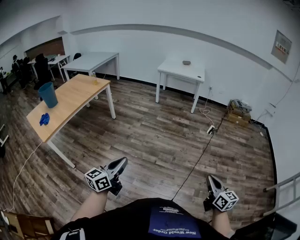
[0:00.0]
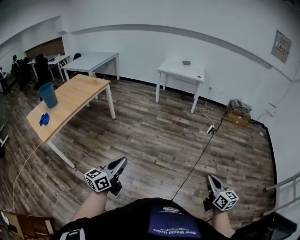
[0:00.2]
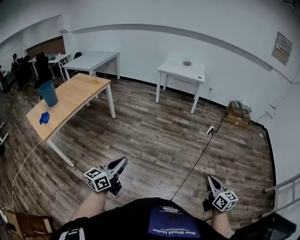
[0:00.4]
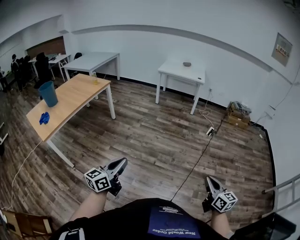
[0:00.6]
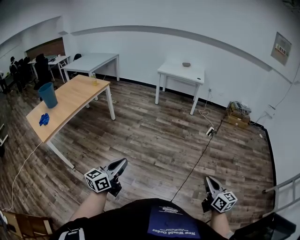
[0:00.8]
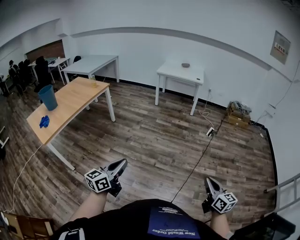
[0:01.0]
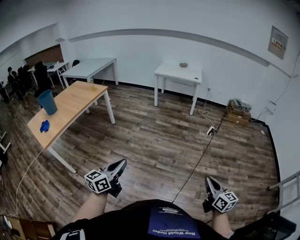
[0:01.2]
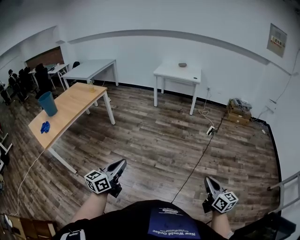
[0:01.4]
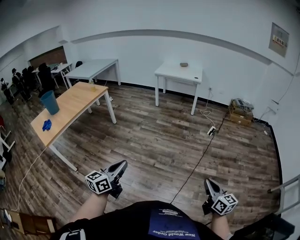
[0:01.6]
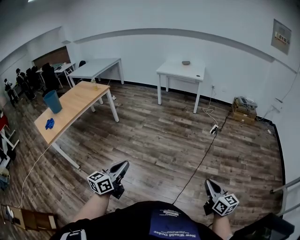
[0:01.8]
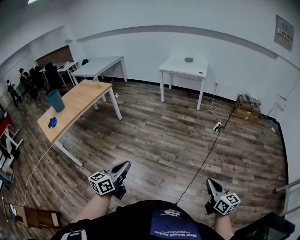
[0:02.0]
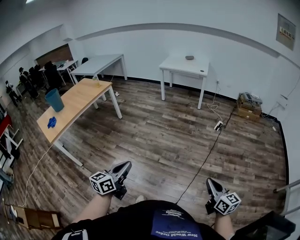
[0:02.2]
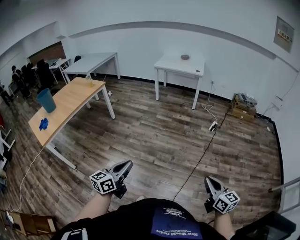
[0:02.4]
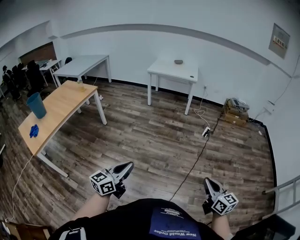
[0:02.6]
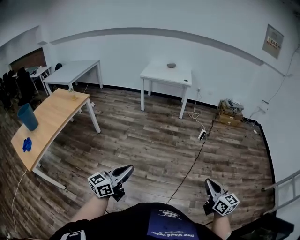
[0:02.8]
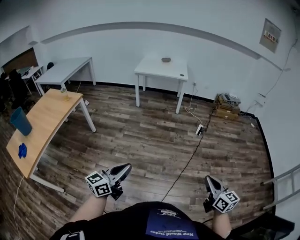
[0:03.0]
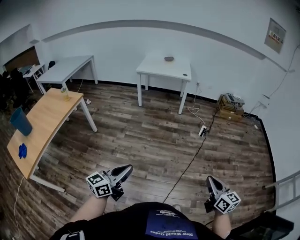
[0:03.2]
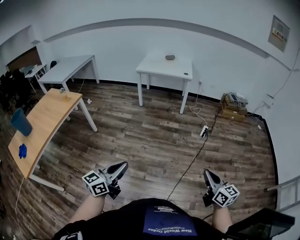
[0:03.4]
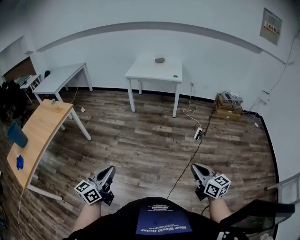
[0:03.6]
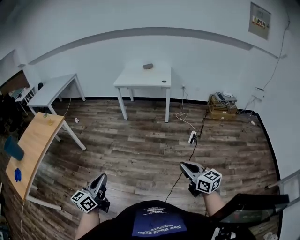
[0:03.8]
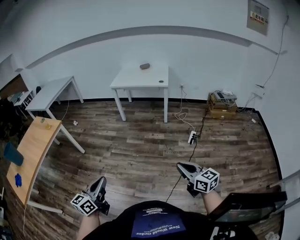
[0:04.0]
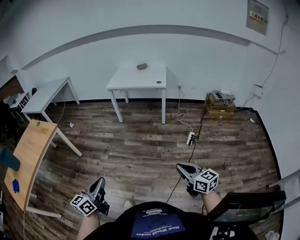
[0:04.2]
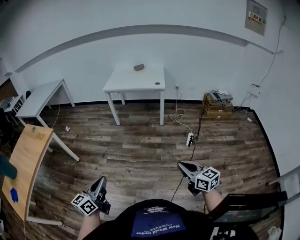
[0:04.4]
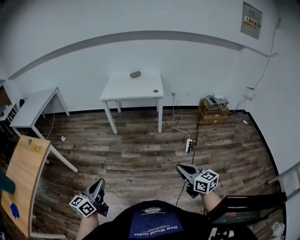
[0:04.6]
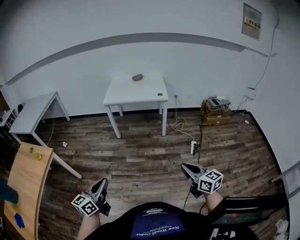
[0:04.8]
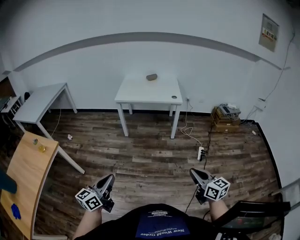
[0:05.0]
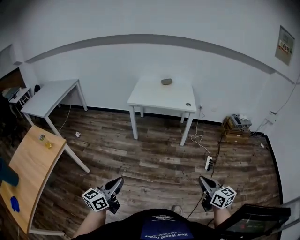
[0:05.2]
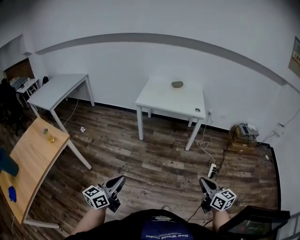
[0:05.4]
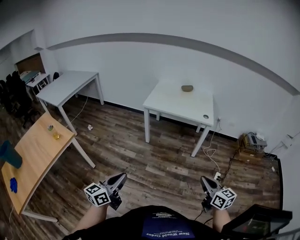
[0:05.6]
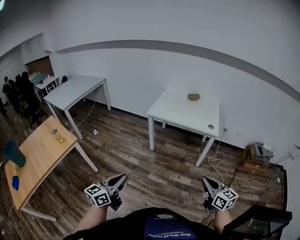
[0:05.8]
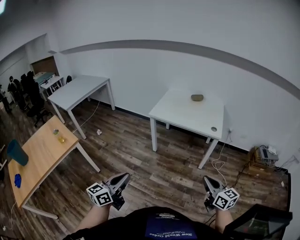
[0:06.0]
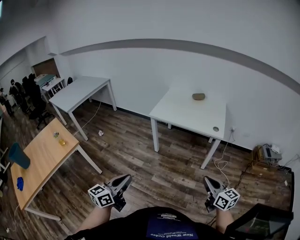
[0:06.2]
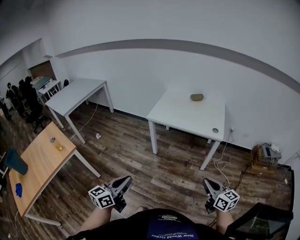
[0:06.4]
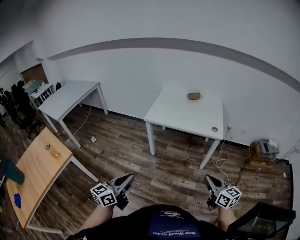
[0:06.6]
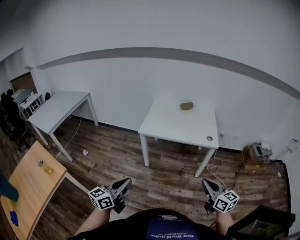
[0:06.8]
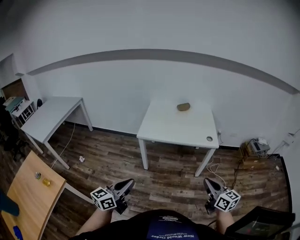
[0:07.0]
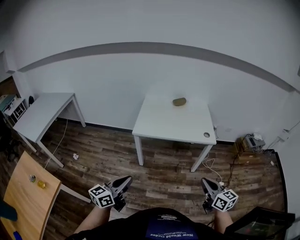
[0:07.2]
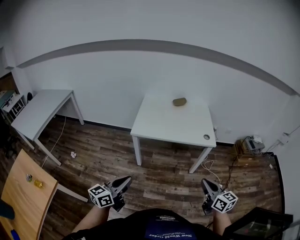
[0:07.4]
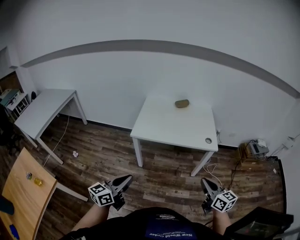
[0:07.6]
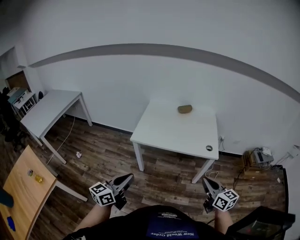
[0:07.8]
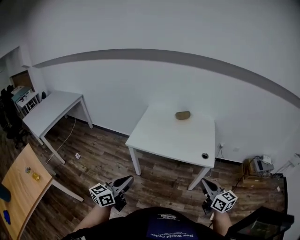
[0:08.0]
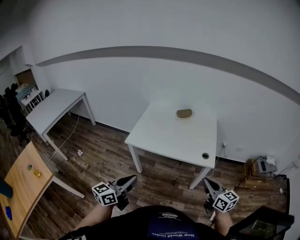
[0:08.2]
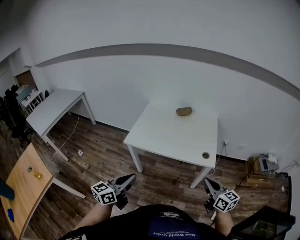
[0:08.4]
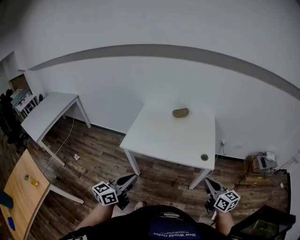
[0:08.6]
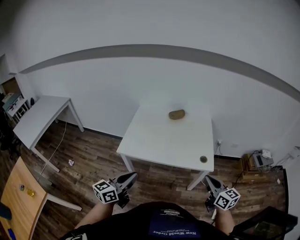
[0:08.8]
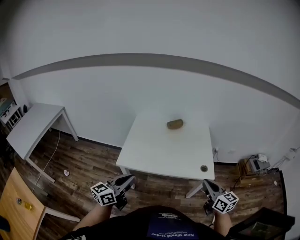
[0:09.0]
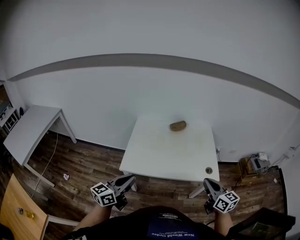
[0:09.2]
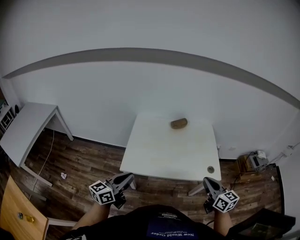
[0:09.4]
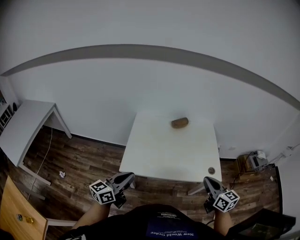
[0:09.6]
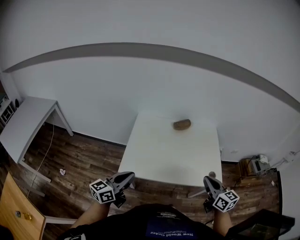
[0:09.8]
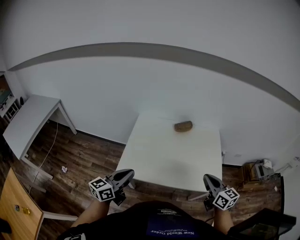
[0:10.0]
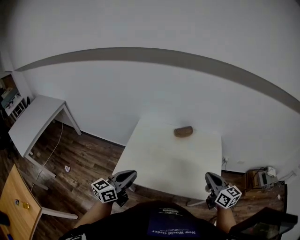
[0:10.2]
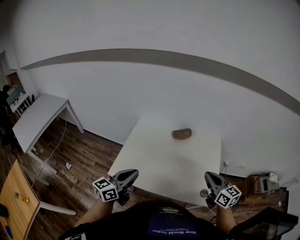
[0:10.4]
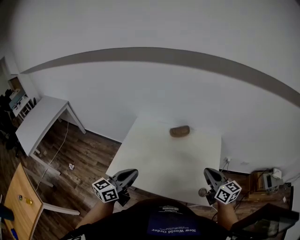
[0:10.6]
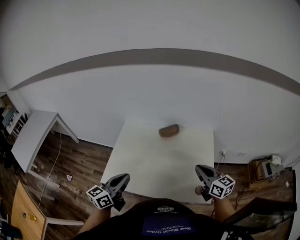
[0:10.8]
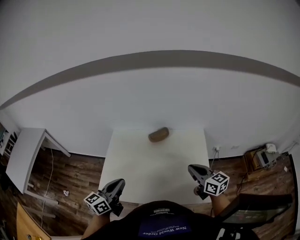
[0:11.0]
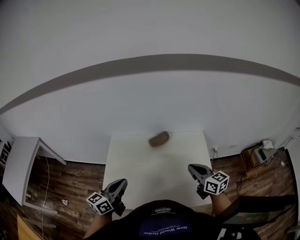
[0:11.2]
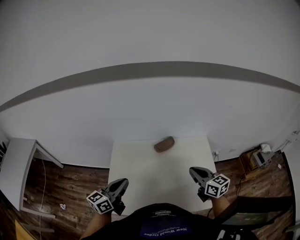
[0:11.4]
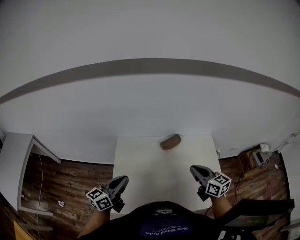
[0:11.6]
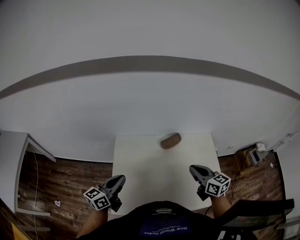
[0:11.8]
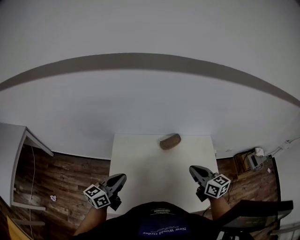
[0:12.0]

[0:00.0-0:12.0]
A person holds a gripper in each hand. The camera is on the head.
0:00.0 to 0:01.6: The grippers both shift to the right by approximately 10 cm.
0:01.6 to 0:03.0: The two grippers go about 25 cm forward.
0:03.0 to 0:04.4: The grippers both shift forward by some 40 cm.
0:04.4 to 0:06.0: Both grippers are carried forward, some 50 cm.
0:06.0 to 0:07.6: Both grippers move forward, approximately 30 cm.
0:07.6 to 0:09.0: Both grippers move forward, some 30 cm.
0:09.0 to 0:10.4: Both grippers travel together forward, about 25 cm.
0:10.4 to 0:12.0: Both grippers travel together forward and to the left, roughly 30 cm.

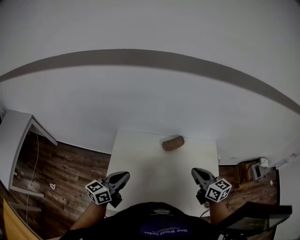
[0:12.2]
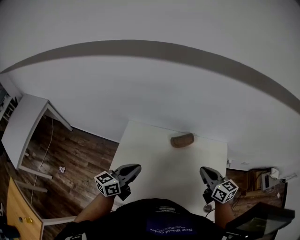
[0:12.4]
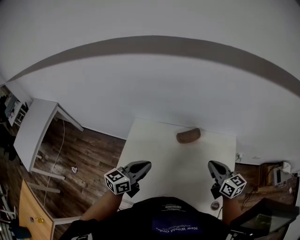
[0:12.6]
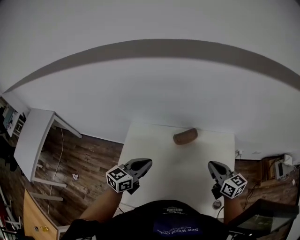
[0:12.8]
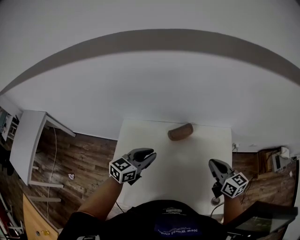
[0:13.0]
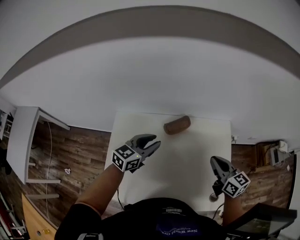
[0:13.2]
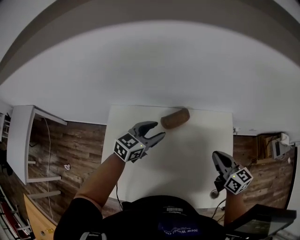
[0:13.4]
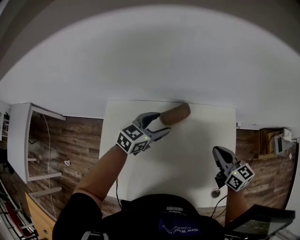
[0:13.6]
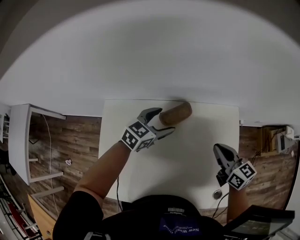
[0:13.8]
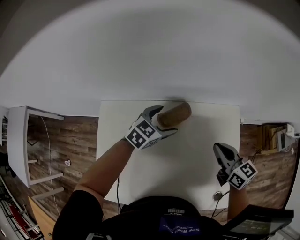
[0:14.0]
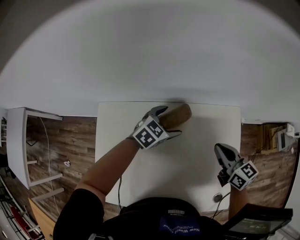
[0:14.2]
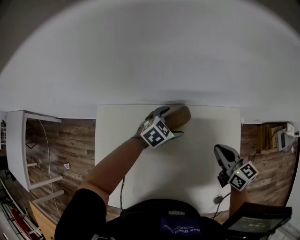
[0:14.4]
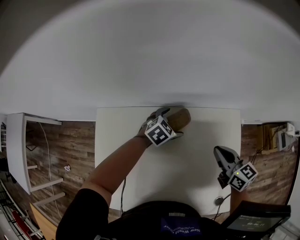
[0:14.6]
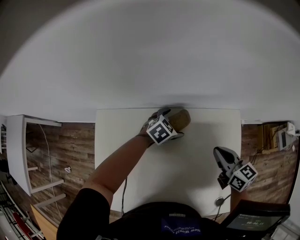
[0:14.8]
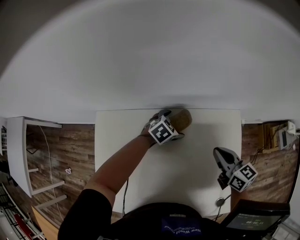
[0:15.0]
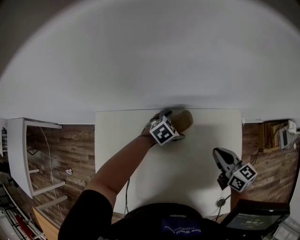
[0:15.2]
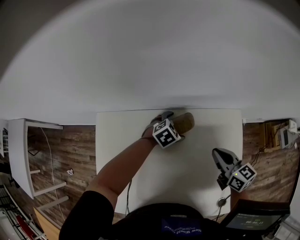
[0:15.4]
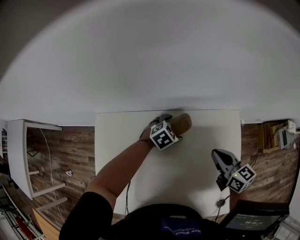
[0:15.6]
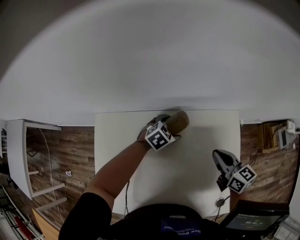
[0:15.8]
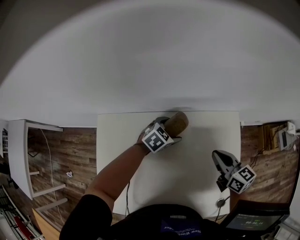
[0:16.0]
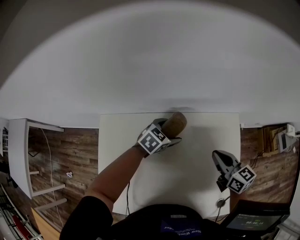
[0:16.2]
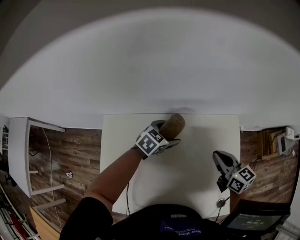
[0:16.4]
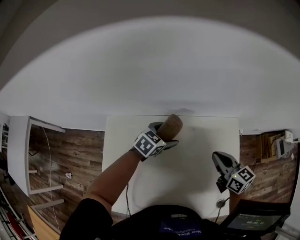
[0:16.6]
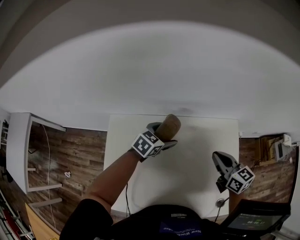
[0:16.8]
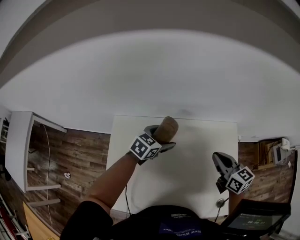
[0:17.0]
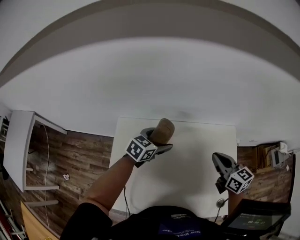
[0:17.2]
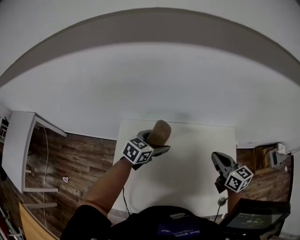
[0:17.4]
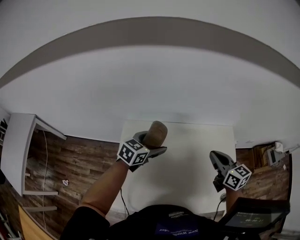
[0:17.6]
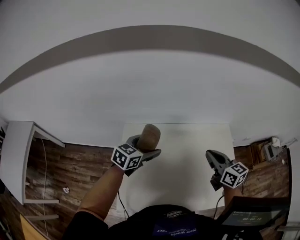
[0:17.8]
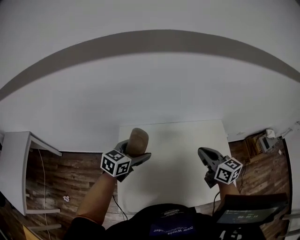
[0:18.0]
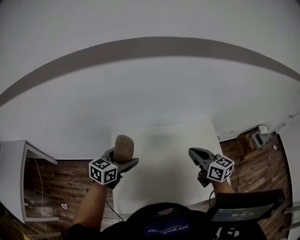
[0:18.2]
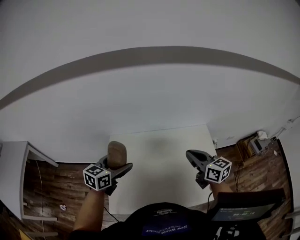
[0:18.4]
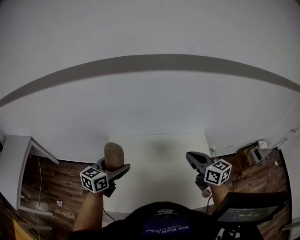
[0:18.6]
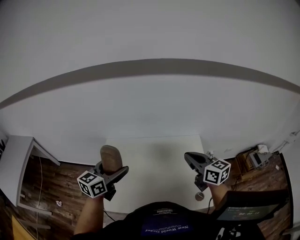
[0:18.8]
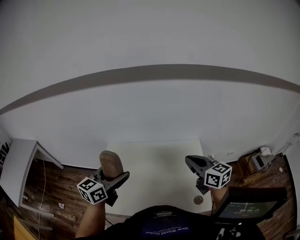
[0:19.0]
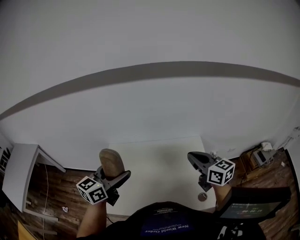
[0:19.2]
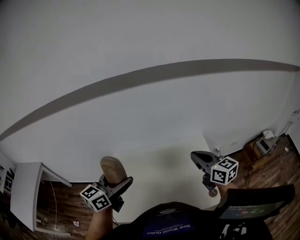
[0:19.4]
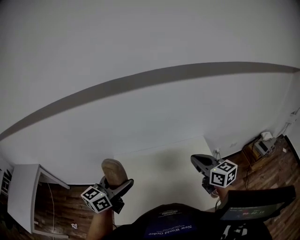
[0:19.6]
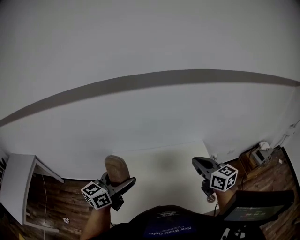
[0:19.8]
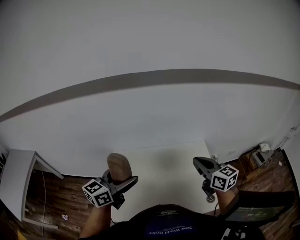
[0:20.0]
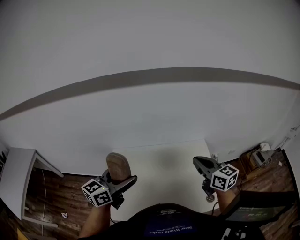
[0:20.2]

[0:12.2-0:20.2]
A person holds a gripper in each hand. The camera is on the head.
0:12.2 to 0:13.8: The right gripper heads forward, downward and to the right, covering roughly 25 cm, while the left gripper shifts about 40 cm forward, to the right and downward, changes its angle by roughly 40 degrees, and opens.
0:13.8 to 0:15.4: The right gripper heads downward, covering about 5 cm. Meanwhile the left gripper moves downward, roughly 15 cm, and rotates about 30 degrees.
0:15.4 to 0:17.0: The right gripper moves upward and backward, some 10 cm. The left gripper is displaced upward, to the left and backward by roughly 20 cm, and turns by approximately 30 degrees.
0:17.0 to 0:18.6: The grippers both shift backward and upward by about 30 cm. The left gripper swivels some 30 degrees.
0:18.6 to 0:20.2: The right gripper moves roughly 10 cm to the right and comes back; the left gripper heads upward, covering some 10 cm.

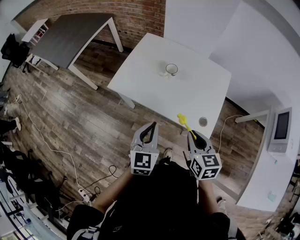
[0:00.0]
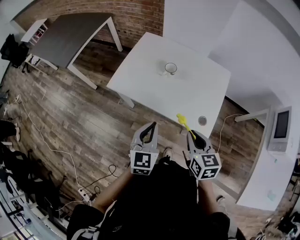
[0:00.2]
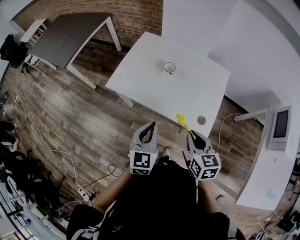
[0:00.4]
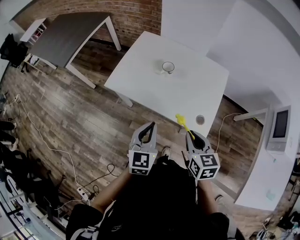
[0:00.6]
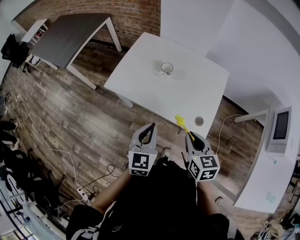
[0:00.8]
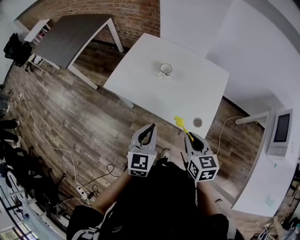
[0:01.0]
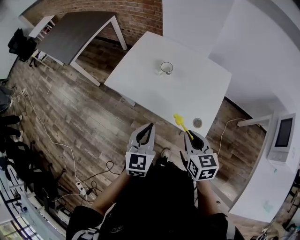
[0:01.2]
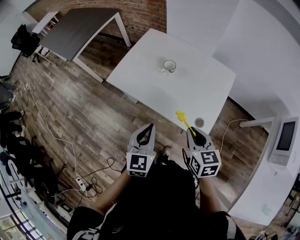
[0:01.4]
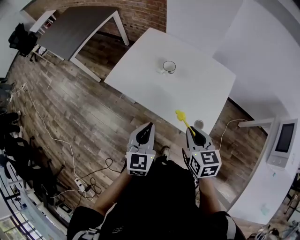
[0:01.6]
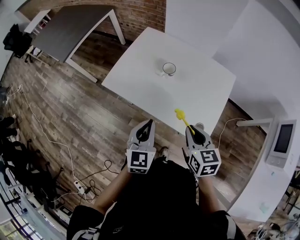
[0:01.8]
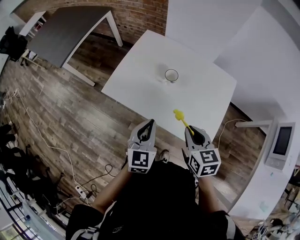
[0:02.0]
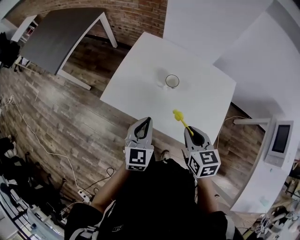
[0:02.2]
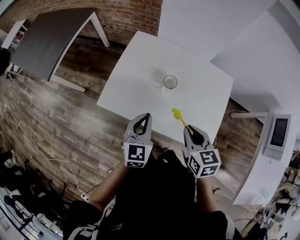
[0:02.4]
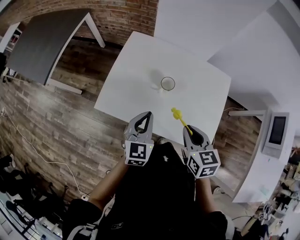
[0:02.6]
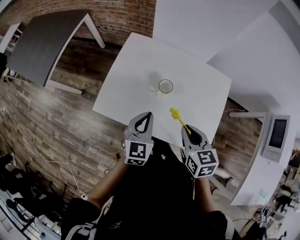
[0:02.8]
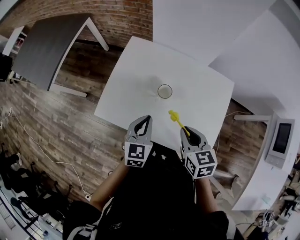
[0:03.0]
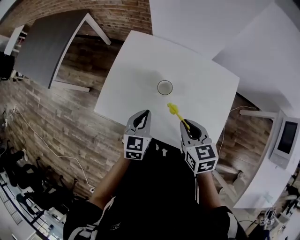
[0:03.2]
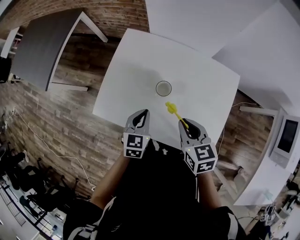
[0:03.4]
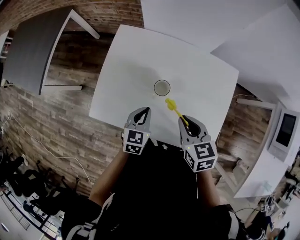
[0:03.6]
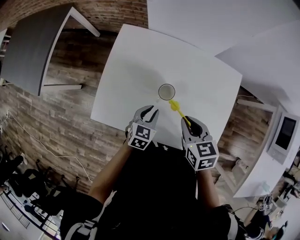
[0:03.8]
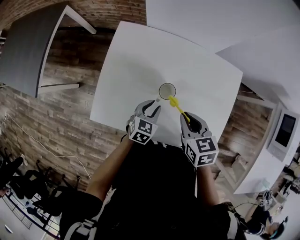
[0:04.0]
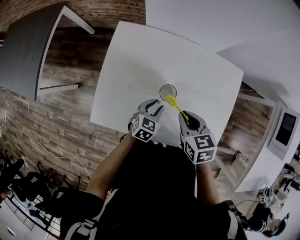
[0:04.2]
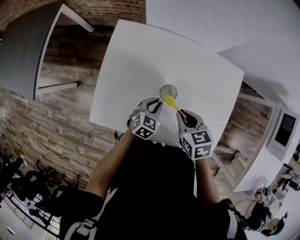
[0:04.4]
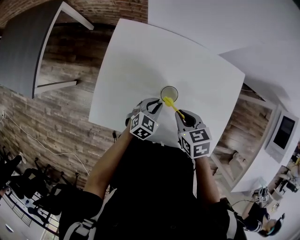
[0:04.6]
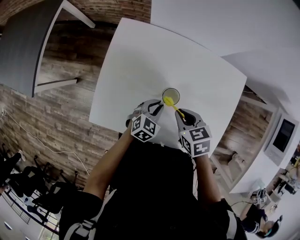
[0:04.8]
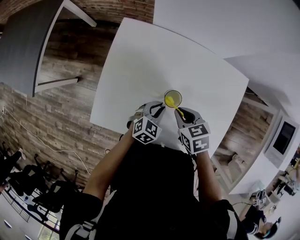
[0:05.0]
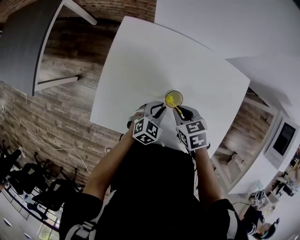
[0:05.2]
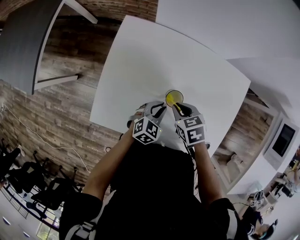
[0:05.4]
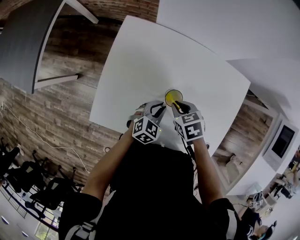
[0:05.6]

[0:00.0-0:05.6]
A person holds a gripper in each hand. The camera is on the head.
0:00.0 to 0:01.4: Both grippers move to the right, approximately 5 cm.
0:01.4 to 0:02.8: The grippers both shift forward by about 20 cm.
0:02.8 to 0:04.2: The right gripper shifts about 15 cm forward and downward; the left gripper goes approximately 20 cm downward and forward, changes its angle by some 30 degrees, and opens.
0:04.2 to 0:05.6: The right gripper travels downward by roughly 10 cm, and swivels approximately 20 degrees.
